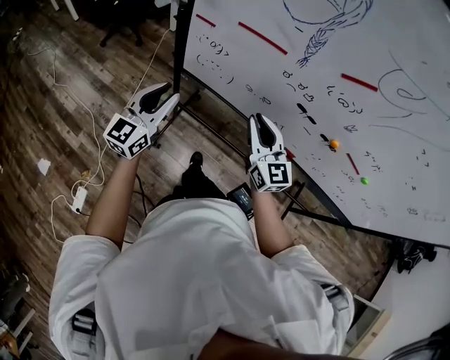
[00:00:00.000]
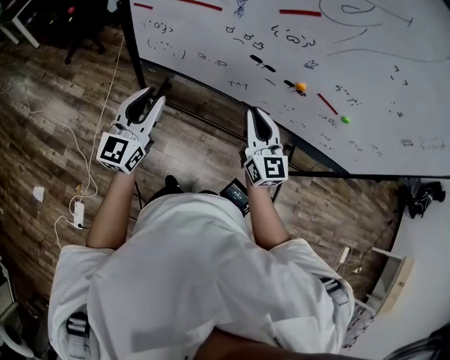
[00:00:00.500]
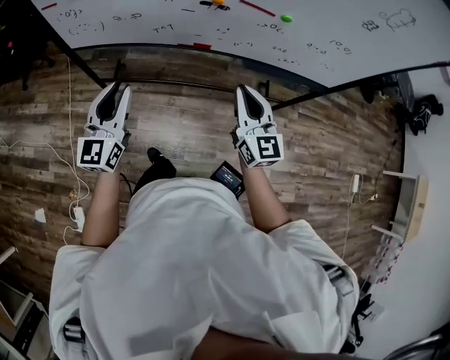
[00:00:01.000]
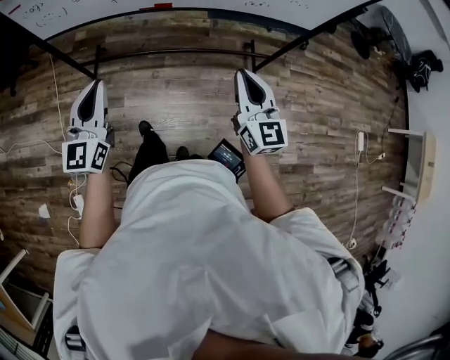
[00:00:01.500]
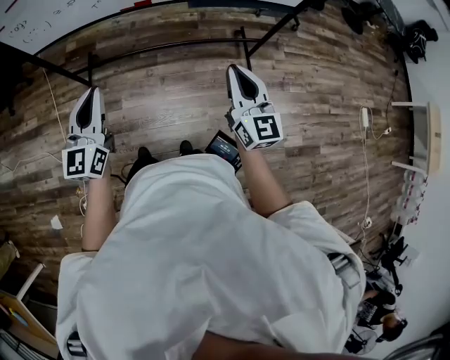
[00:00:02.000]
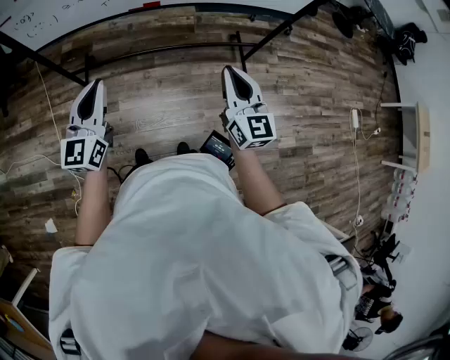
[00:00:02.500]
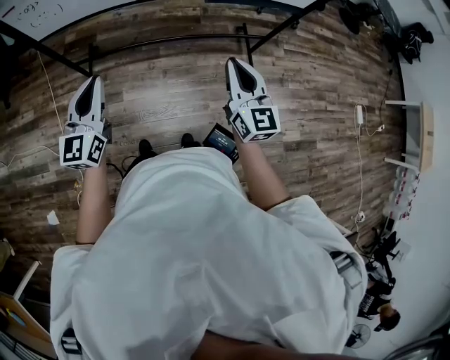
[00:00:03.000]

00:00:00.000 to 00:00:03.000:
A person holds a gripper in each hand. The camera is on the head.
00:00:00.000 to 00:00:01.500: Both grippers travel together to the right and backward, about 40 cm. The right gripper swivels approximately 30 degrees; the left gripper closes up.
00:00:01.500 to 00:00:03.000: The left gripper shifts by approximately 5 cm. Meanwhile the right gripper shifts by some 5 cm.

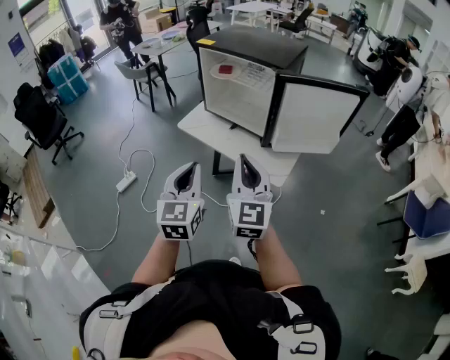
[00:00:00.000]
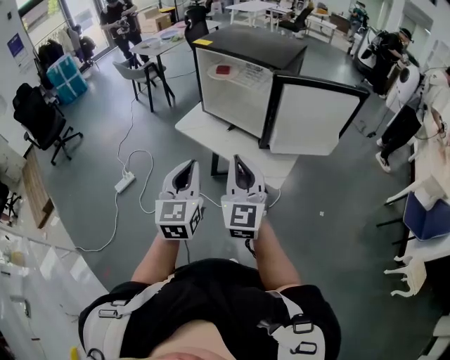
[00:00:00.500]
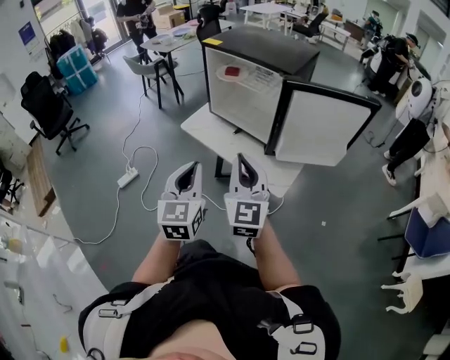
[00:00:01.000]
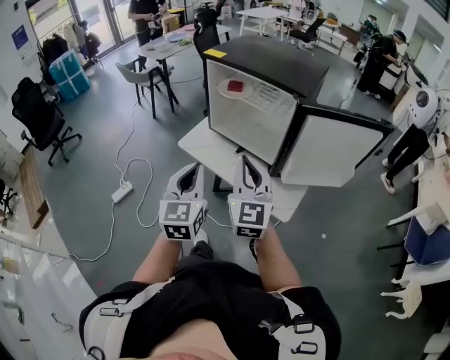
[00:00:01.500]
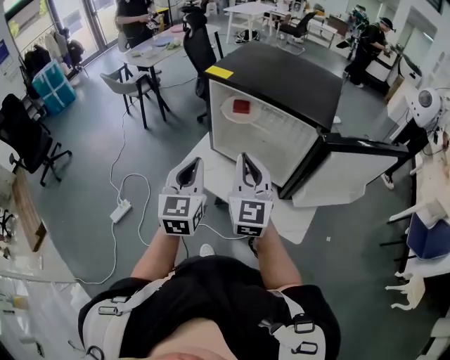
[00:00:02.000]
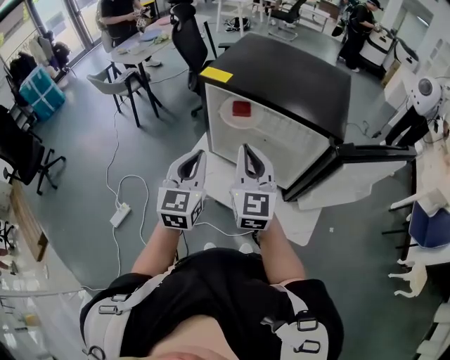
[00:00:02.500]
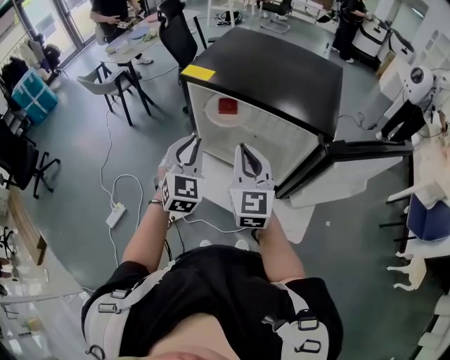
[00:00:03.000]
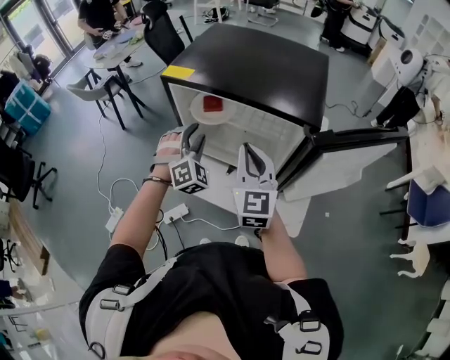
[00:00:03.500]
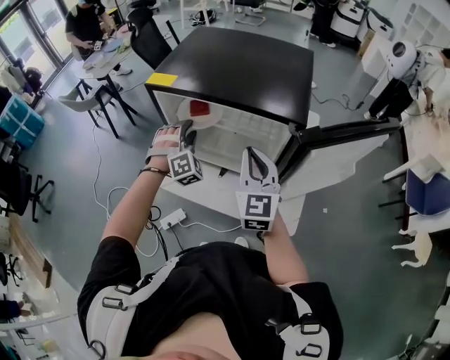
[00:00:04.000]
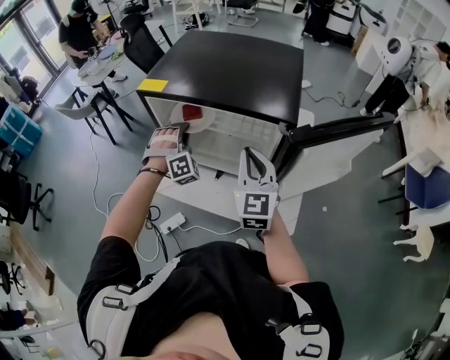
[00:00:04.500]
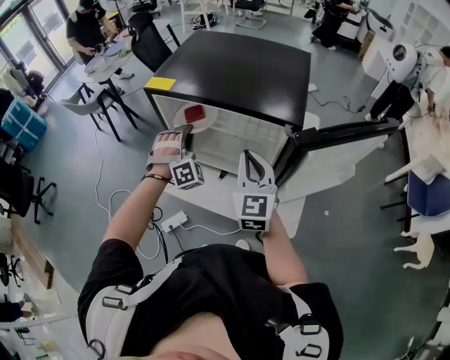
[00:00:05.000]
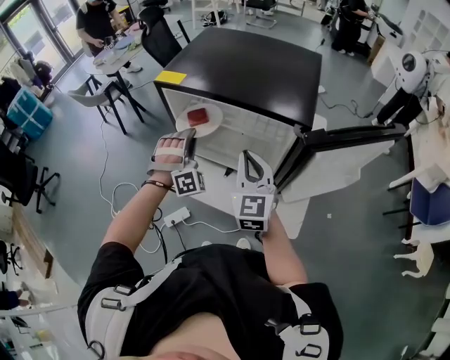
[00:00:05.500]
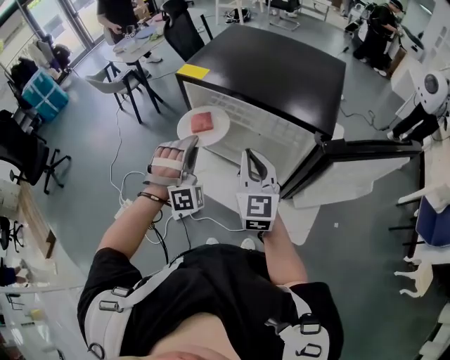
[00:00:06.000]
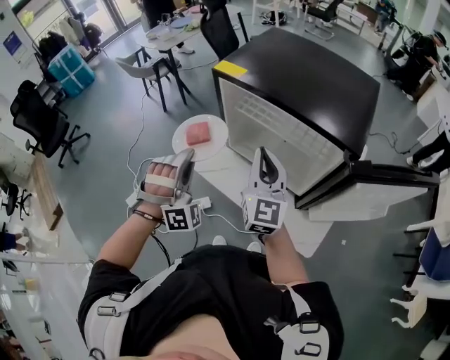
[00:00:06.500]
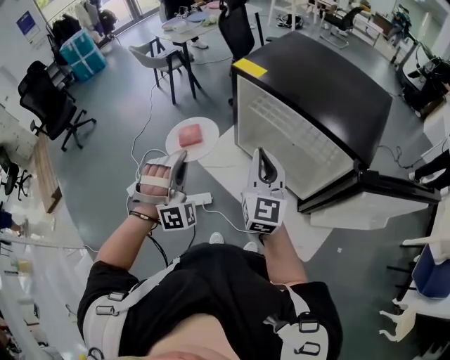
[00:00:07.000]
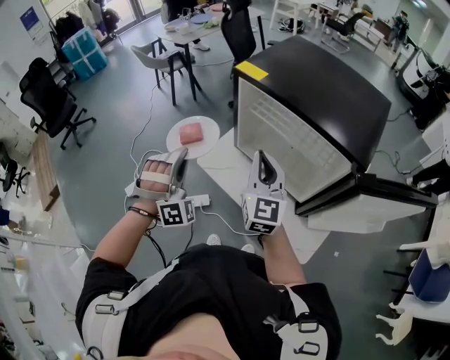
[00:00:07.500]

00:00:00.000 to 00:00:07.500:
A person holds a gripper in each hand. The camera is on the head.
00:00:00.000 to 00:00:02.000: The two grippers go roughly 30 cm forward.
00:00:02.000 to 00:00:04.000: The right gripper shifts roughly 15 cm to the right and forward. Meanwhile the left gripper travels forward and downward by about 25 cm, rolls clockwise, seen from behind, by roughly 70 degrees, and opens.
00:00:04.000 to 00:00:05.500: The left gripper closes up.
00:00:05.500 to 00:00:07.500: The right gripper goes roughly 10 cm to the left. Meanwhile the left gripper shifts roughly 20 cm to the left and backward.

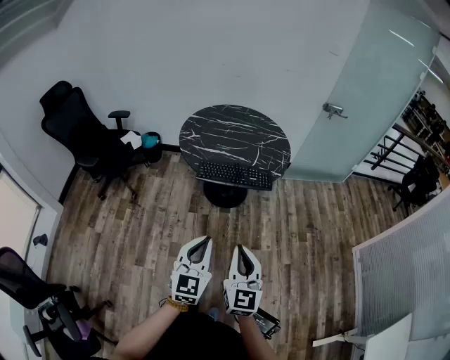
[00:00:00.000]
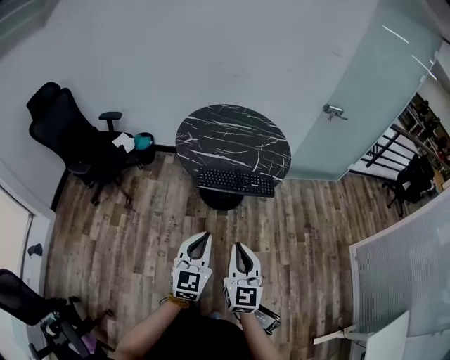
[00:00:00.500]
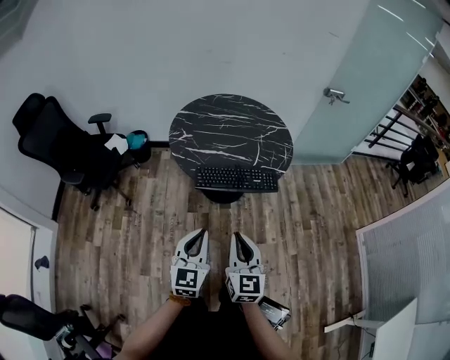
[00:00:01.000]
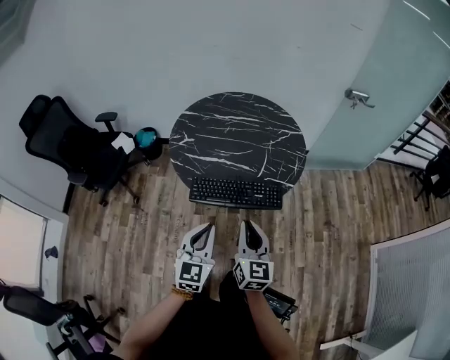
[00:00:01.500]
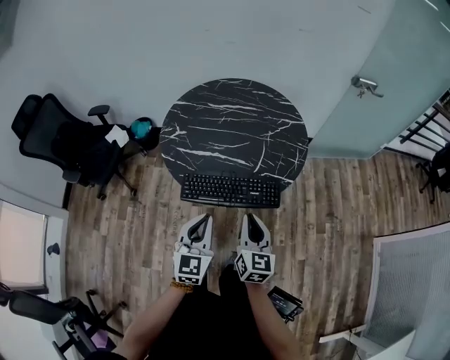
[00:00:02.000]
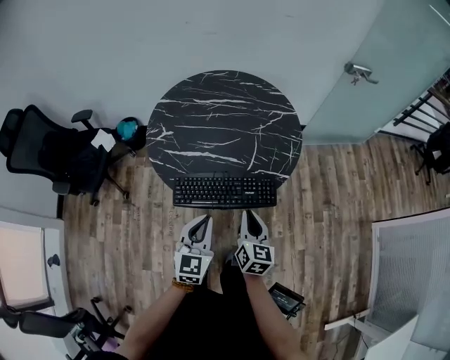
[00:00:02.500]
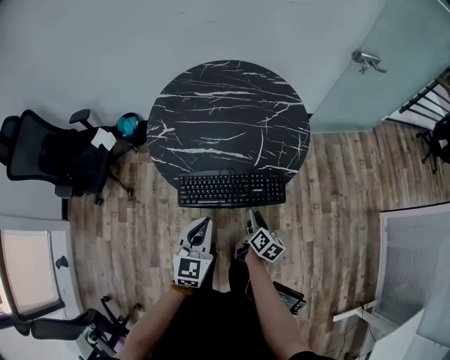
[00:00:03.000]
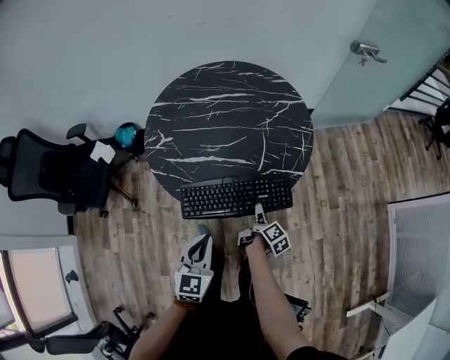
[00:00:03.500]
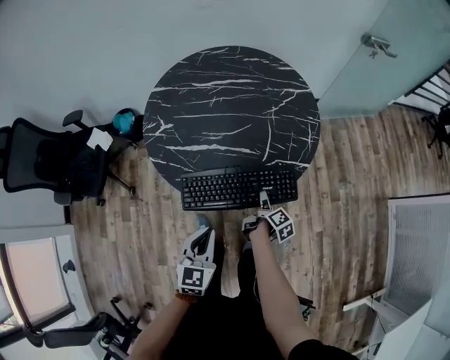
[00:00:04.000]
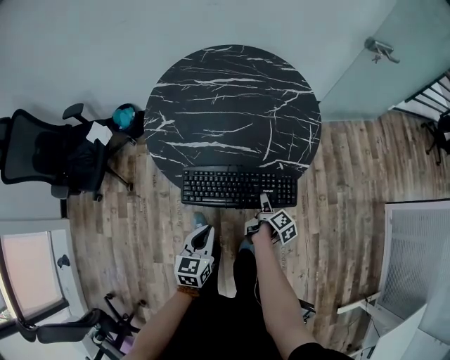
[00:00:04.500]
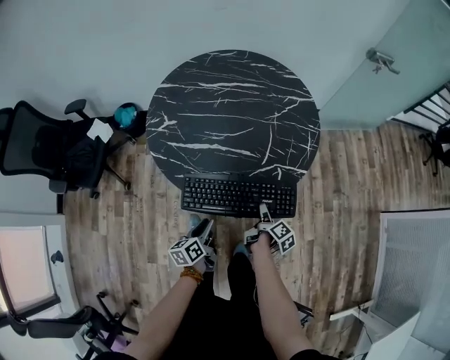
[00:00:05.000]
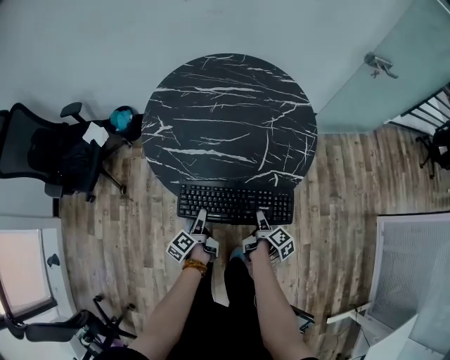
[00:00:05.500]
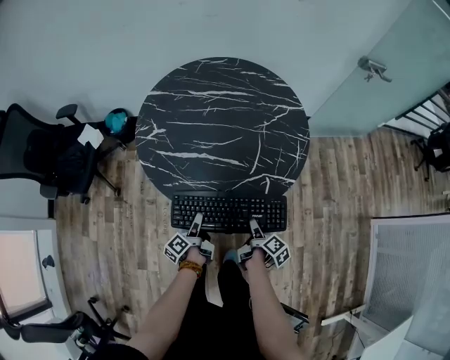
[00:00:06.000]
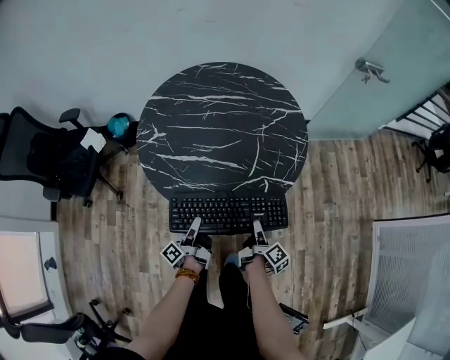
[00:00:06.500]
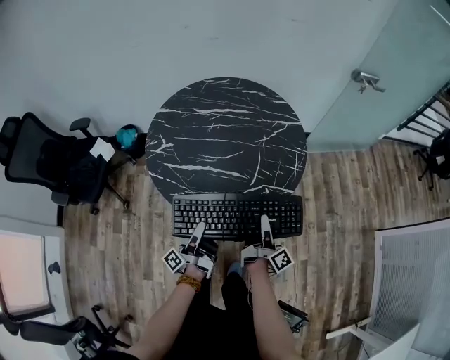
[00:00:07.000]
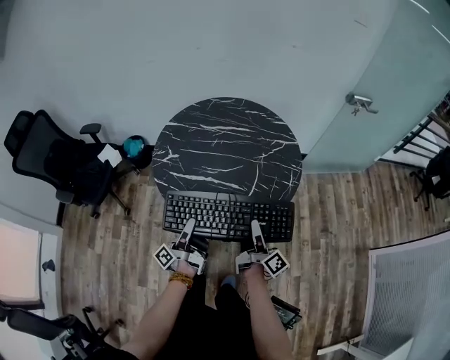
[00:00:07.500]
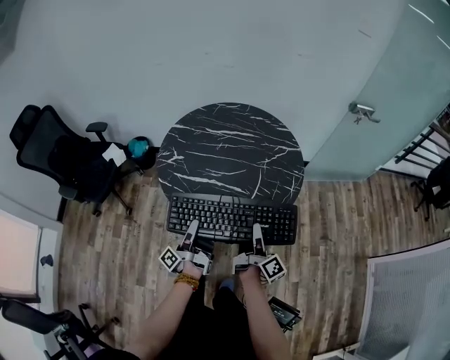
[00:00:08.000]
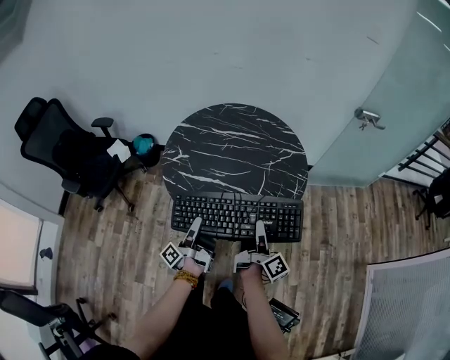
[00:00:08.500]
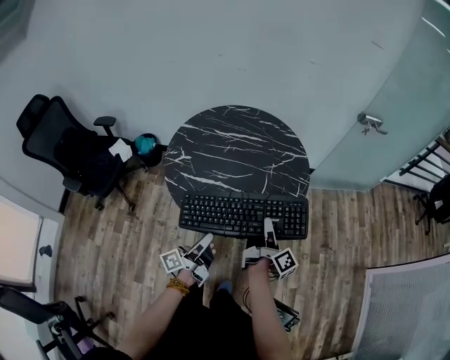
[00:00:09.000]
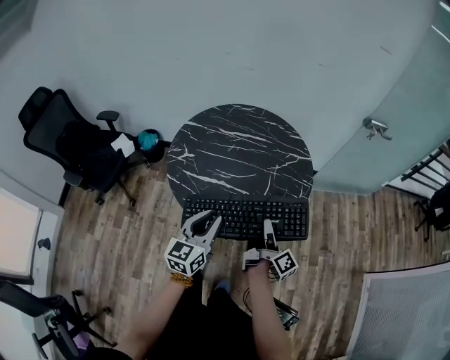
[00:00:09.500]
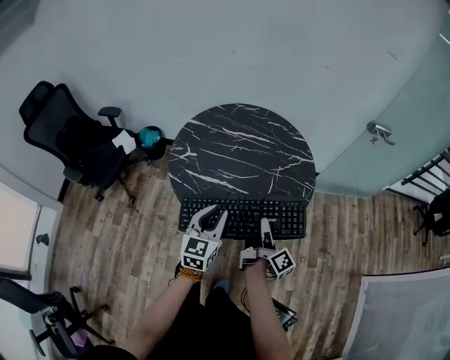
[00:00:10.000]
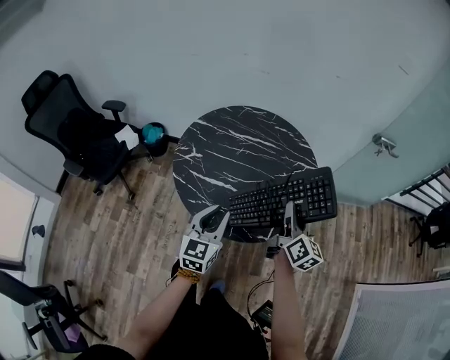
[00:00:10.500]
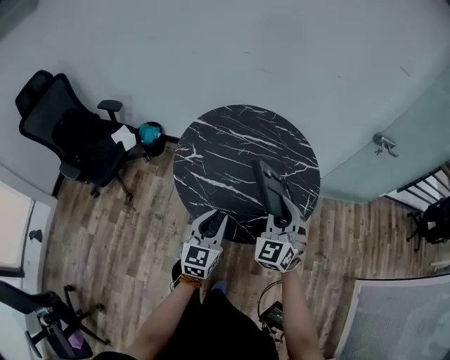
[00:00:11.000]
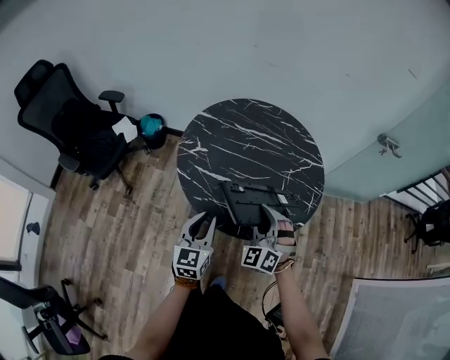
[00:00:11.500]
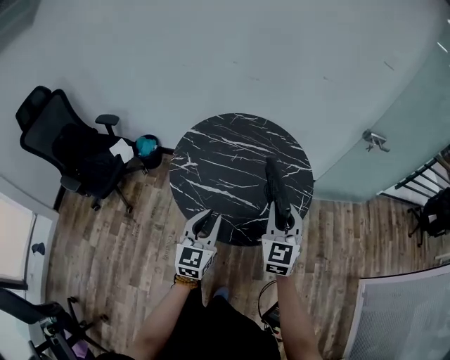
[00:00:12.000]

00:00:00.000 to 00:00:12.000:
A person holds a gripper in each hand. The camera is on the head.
00:00:00.000 to 00:00:02.000: Both grippers move forward, approximately 35 cm. The right gripper swivels some 20 degrees.
00:00:02.000 to 00:00:04.000: The left gripper is displaced downward by about 10 cm, while the right gripper moves downward, approximately 25 cm, rotates around the line of its fingers by roughly 70 degrees, clockwise from behind, and opens up.
00:00:04.000 to 00:00:06.000: The left gripper moves downward, some 15 cm, twists roughly 90 degrees counterclockwise, seen from behind, and opens. Meanwhile the right gripper goes about 5 cm backward.
00:00:06.000 to 00:00:08.000: Both grippers travel together upward, approximately 20 cm. The right gripper angles its fingers upward, by about 40 degrees, and closes up, while the left gripper points its fingers about 40 degrees further upward.
00:00:08.000 to 00:00:10.000: The left gripper travels upward and to the right by about 10 cm, and twists some 90 degrees clockwise, seen from behind.
00:00:10.000 to 00:00:12.000: The right gripper goes up and down, about 15 cm each way, reversing 2 times, and rolls counterclockwise, seen from behind, by about 100 degrees.

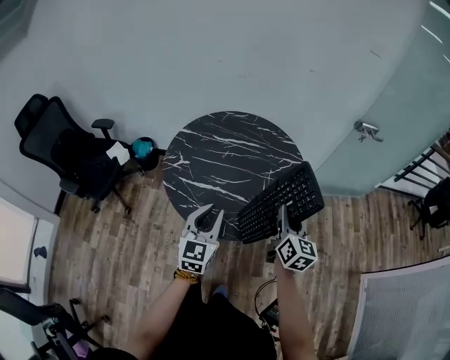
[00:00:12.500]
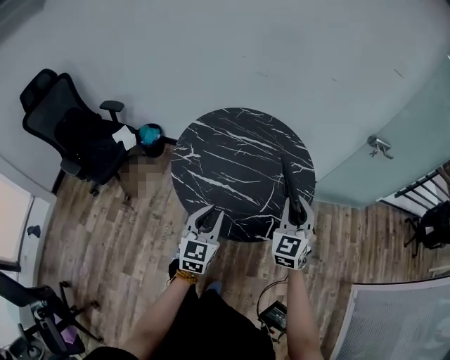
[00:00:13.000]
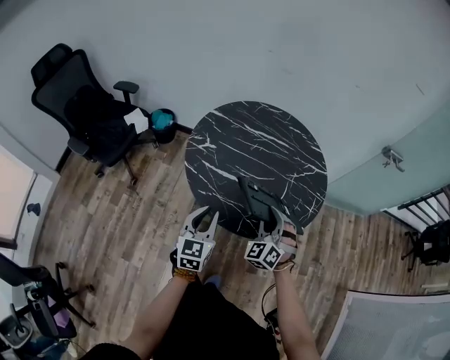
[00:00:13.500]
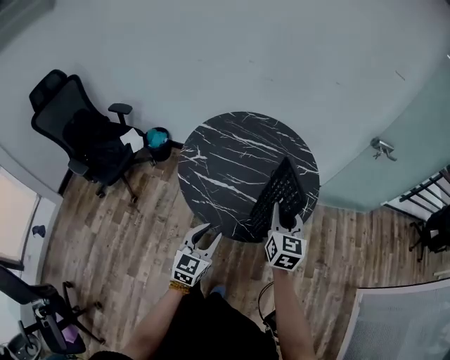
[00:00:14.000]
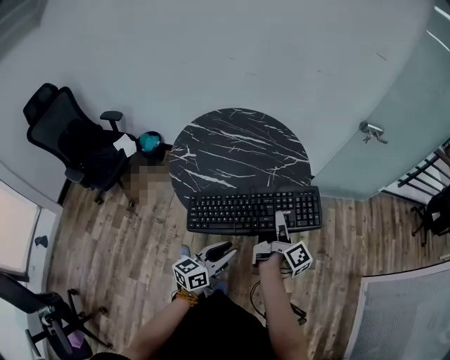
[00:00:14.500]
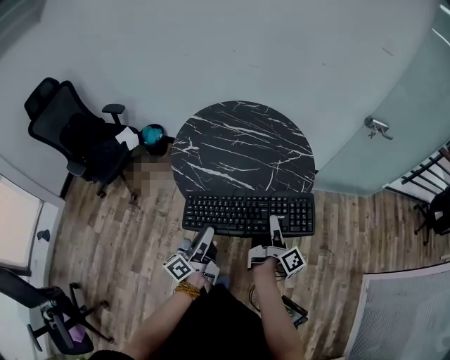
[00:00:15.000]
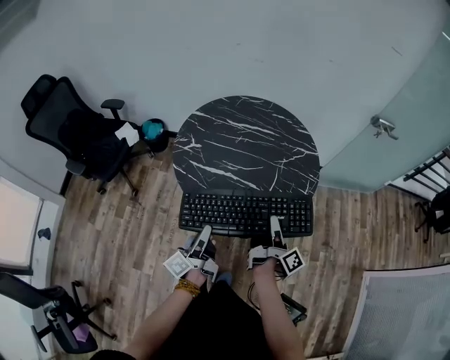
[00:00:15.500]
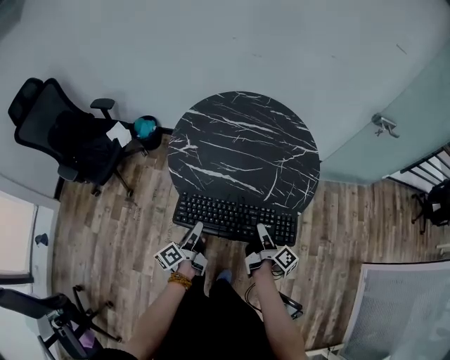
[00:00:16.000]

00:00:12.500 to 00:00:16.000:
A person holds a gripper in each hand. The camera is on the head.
00:00:12.500 to 00:00:14.500: The right gripper travels to the left and back again, roughly 15 cm each way, and rolls clockwise, seen from behind, by some 60 degrees; the left gripper travels backward, downward and to the right by about 15 cm, and swivels some 50 degrees.
00:00:14.500 to 00:00:16.000: The left gripper is displaced to the left, downward and forward by some 20 cm, and changes its angle by approximately 40 degrees. Meanwhile the right gripper goes approximately 15 cm downward and to the left, and swivels some 20 degrees.
